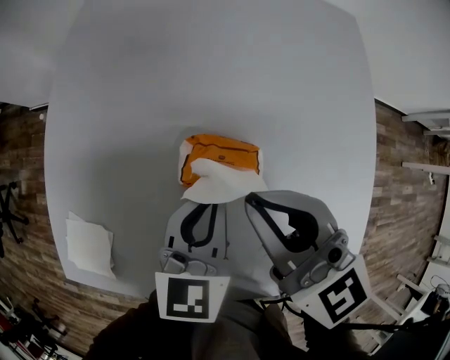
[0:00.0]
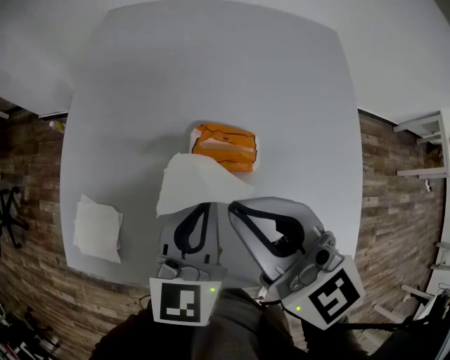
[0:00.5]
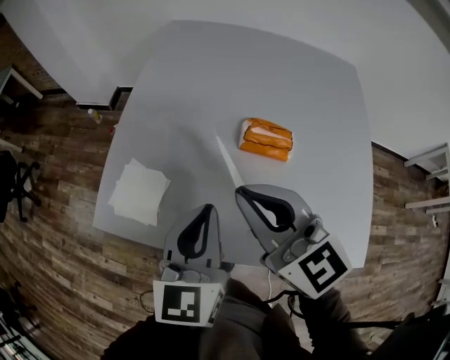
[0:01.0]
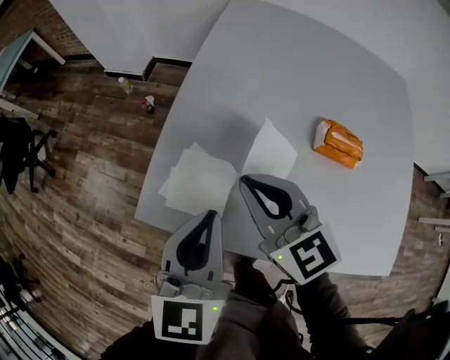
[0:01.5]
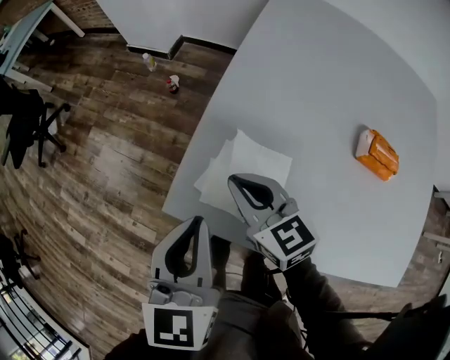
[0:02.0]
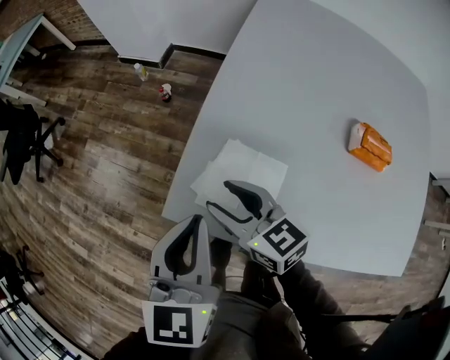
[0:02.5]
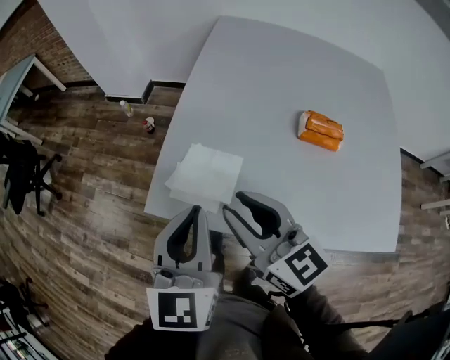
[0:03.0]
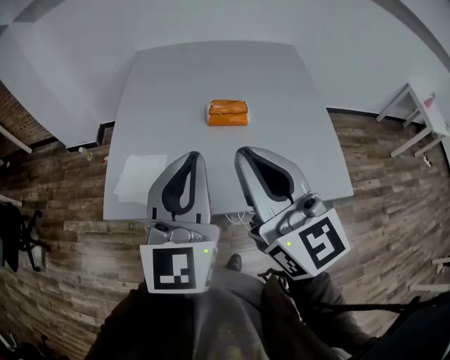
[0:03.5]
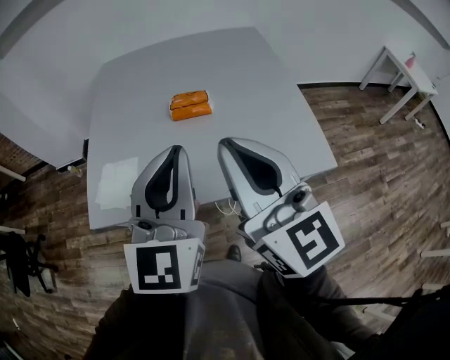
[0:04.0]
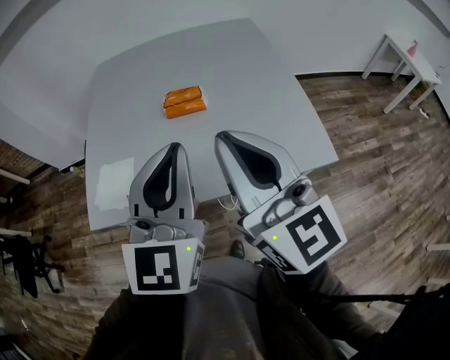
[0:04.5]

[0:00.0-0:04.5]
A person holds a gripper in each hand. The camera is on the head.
0:00.0 to 0:02.0: The two grippers travel together, approximately 50 cm. The left gripper turns by some 30 degrees. The right gripper swivels some 20 degrees.
0:02.0 to 0:04.5: Both grippers are carried approximately 40 cm. The left gripper turns by some 50 degrees. The right gripper angles its fingers upward, by approximately 30 degrees, and opens, then closes again.

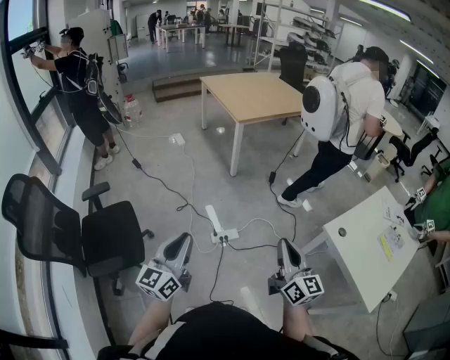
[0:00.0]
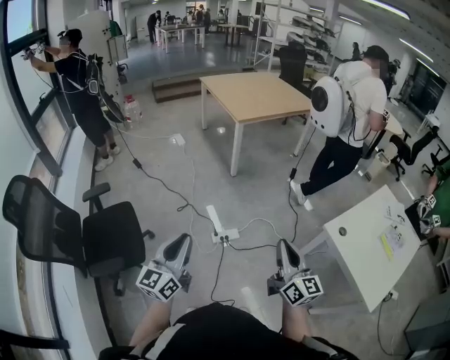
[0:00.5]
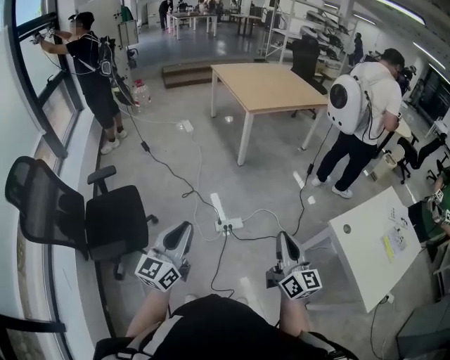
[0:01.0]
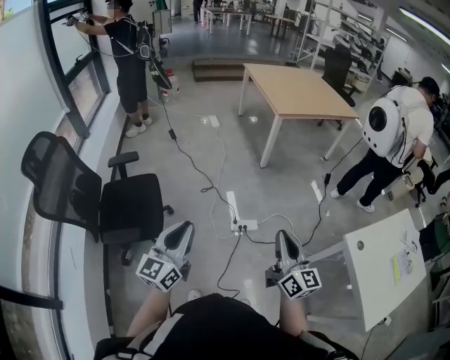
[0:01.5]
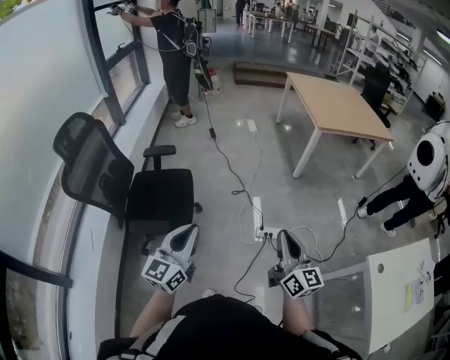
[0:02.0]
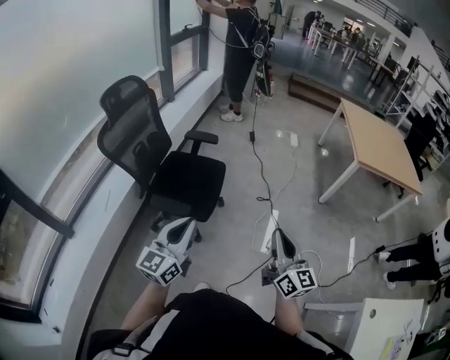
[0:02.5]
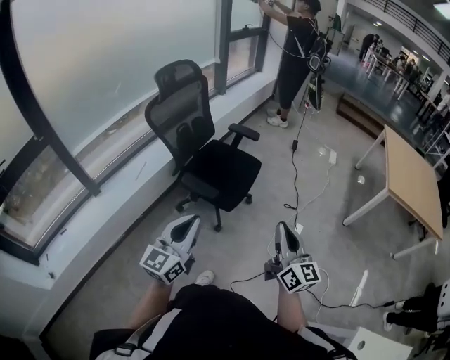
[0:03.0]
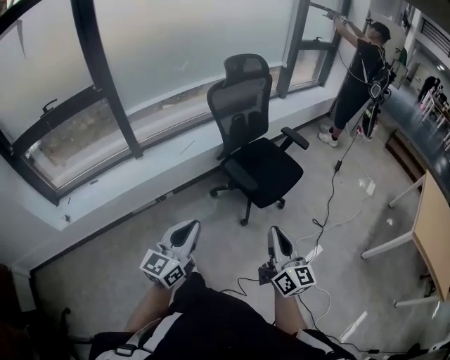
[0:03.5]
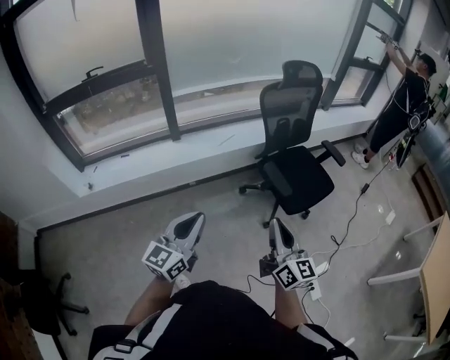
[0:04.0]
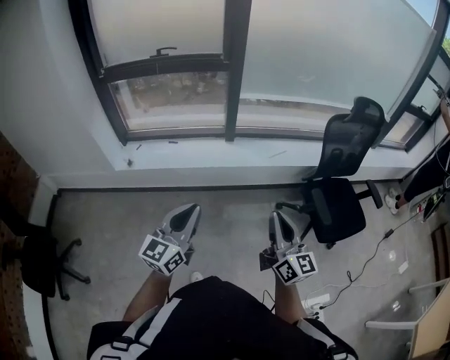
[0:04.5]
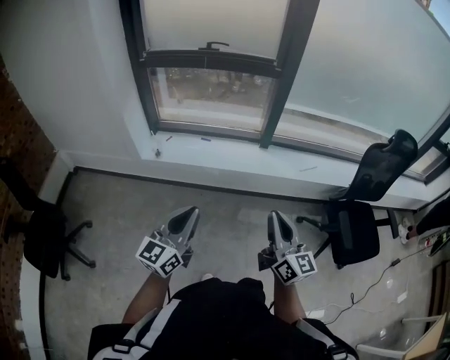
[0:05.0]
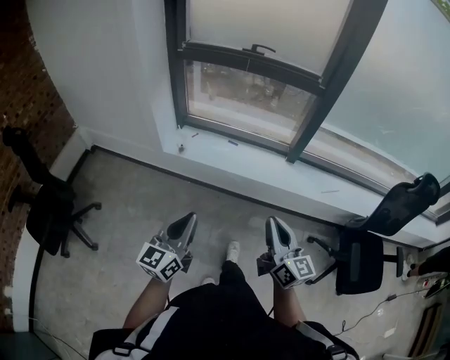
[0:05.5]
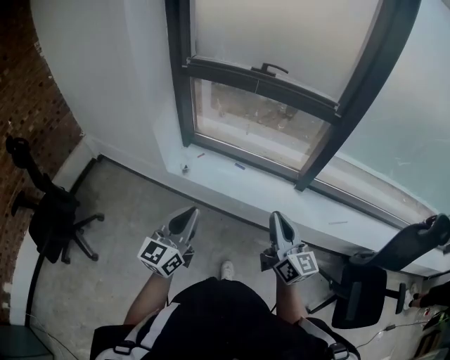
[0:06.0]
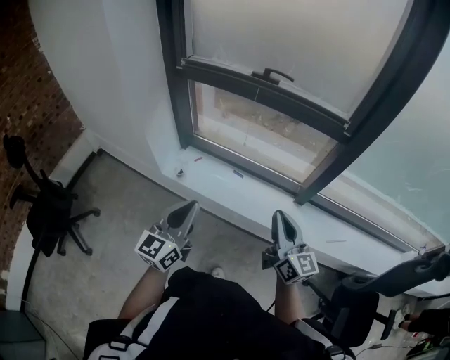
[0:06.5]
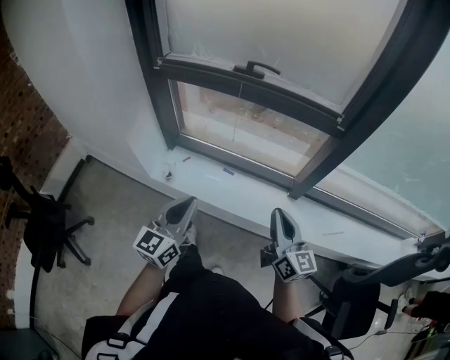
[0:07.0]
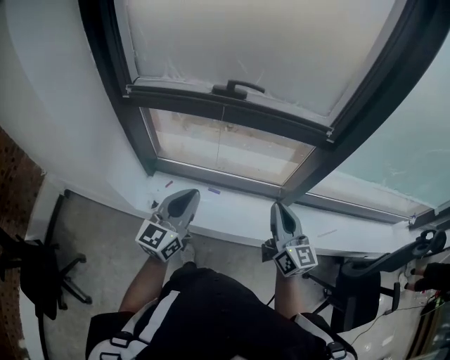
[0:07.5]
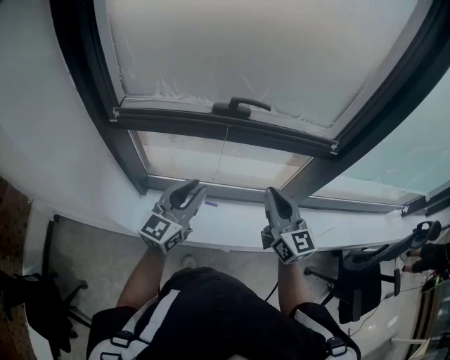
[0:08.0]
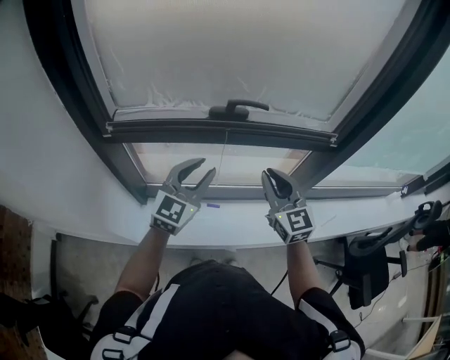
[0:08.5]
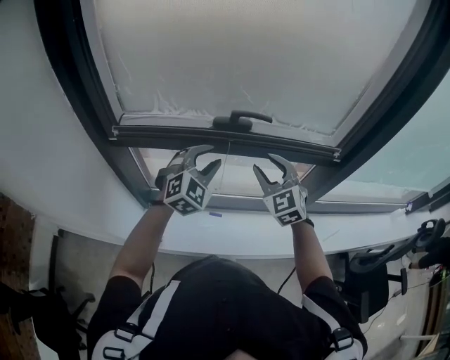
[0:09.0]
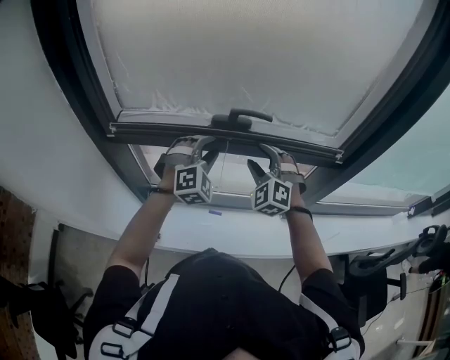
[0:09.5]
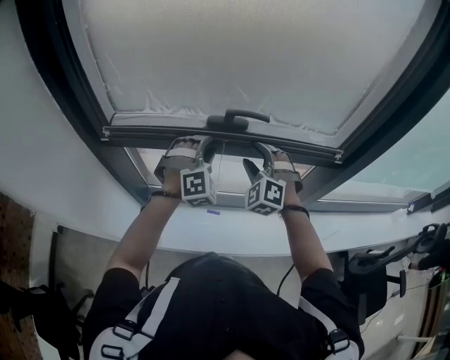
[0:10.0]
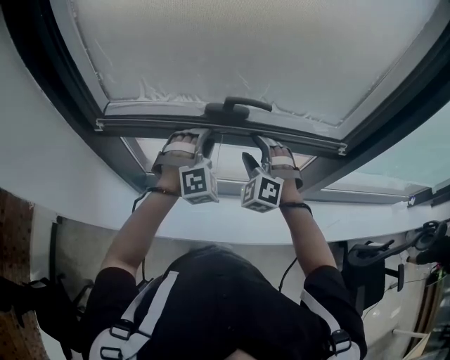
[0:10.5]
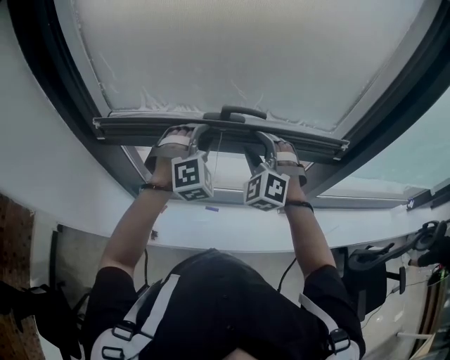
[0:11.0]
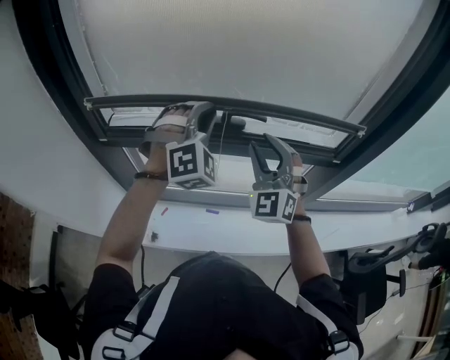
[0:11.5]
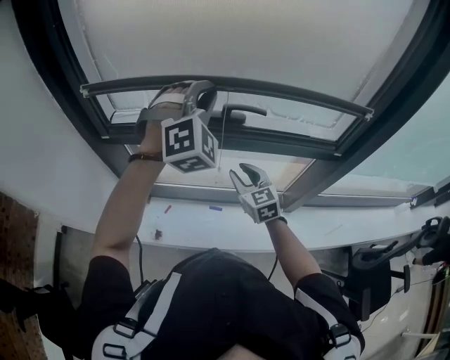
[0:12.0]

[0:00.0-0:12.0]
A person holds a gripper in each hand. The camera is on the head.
0:00.0 to 0:02.0: The right gripper travels to the left by some 20 cm, and swivels about 20 degrees, while the left gripper heads to the left and backward, covering about 15 cm, and rotates about 20 degrees.
0:02.0 to 0:04.0: The right gripper ends up about 35 cm from where it was, and swivels approximately 70 degrees; the left gripper changes place by roughly 40 cm, and swivels about 60 degrees.
0:04.0 to 0:06.0: The pair of grippers is taken roughly 60 cm. The left gripper turns by approximately 40 degrees, while the right gripper changes its angle by about 40 degrees.
0:06.0 to 0:08.0: The grippers both shift forward by some 40 cm. The right gripper changes its angle by approximately 20 degrees, while the left gripper rotates about 20 degrees, and opens its fingers.
0:08.0 to 0:10.0: Both grippers move forward, approximately 20 cm. The left gripper twists roughly 70 degrees clockwise, seen from behind. The right gripper twists roughly 70 degrees counterclockwise, seen from behind, and opens up.
0:10.0 to 0:12.0: The left gripper goes some 20 cm upward, and closes up, while the right gripper moves some 15 cm upward and comes back, rotates around the line of its fingers by approximately 60 degrees, clockwise from behind, and closes up.

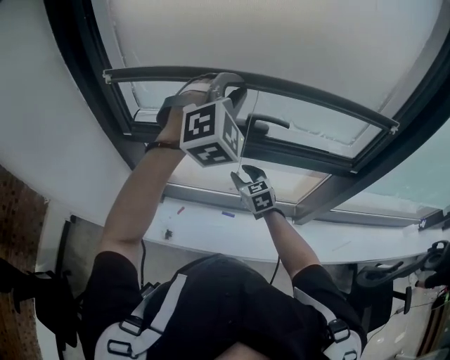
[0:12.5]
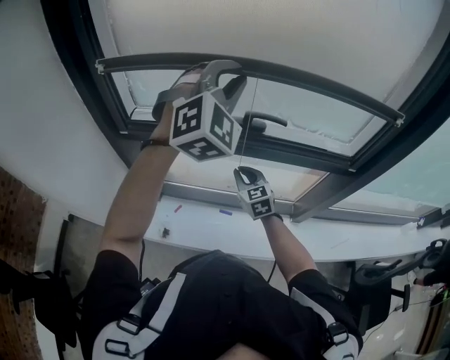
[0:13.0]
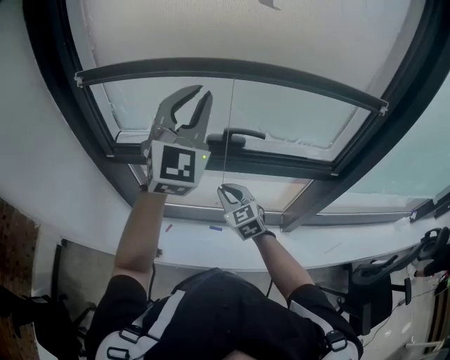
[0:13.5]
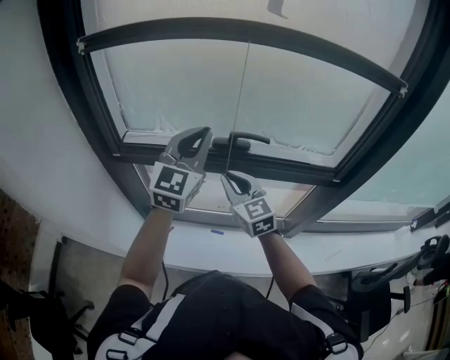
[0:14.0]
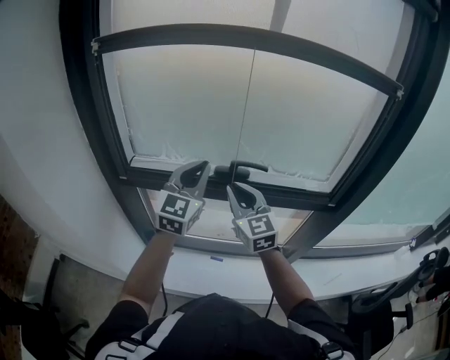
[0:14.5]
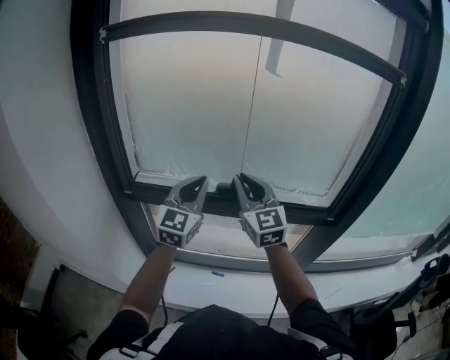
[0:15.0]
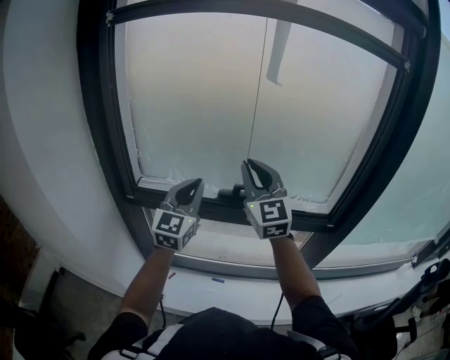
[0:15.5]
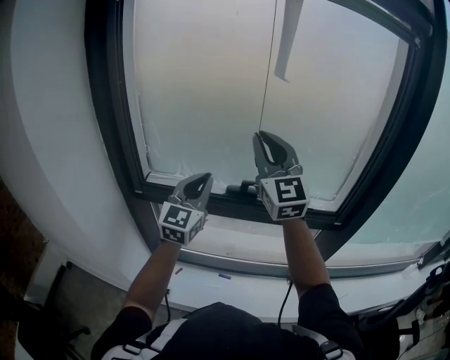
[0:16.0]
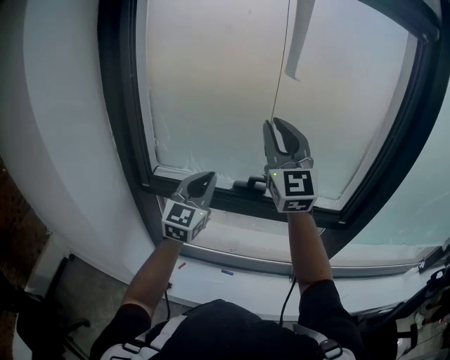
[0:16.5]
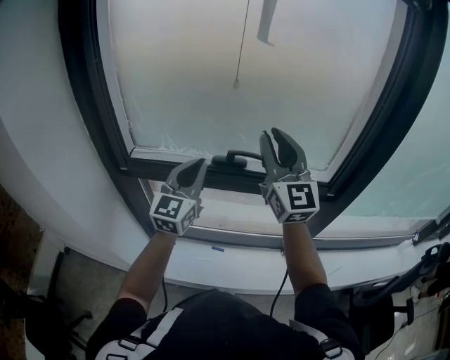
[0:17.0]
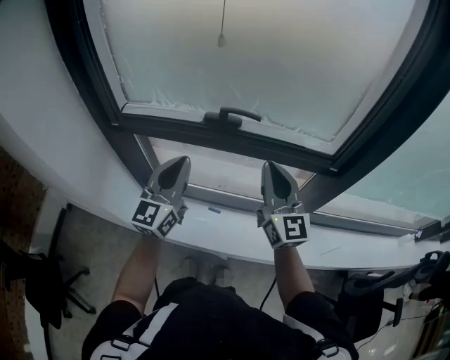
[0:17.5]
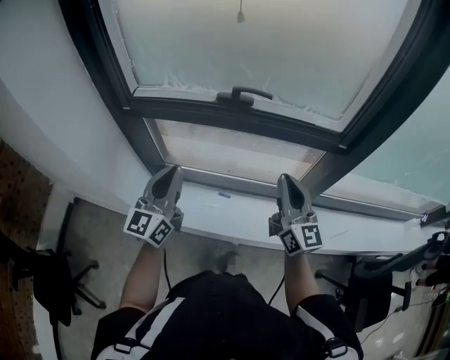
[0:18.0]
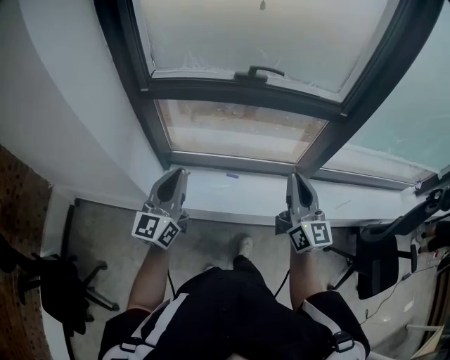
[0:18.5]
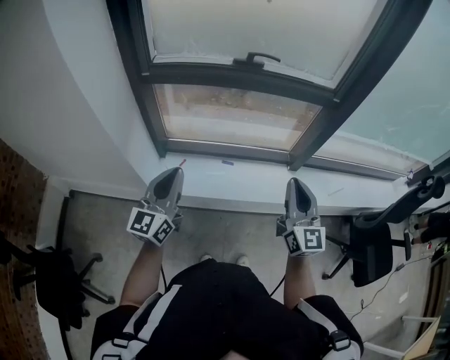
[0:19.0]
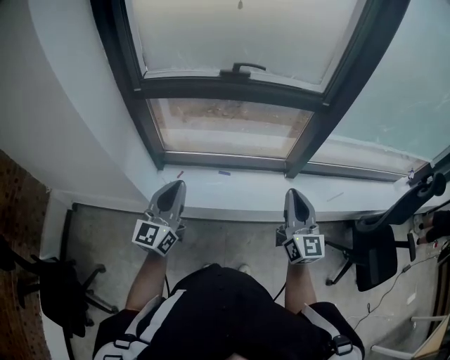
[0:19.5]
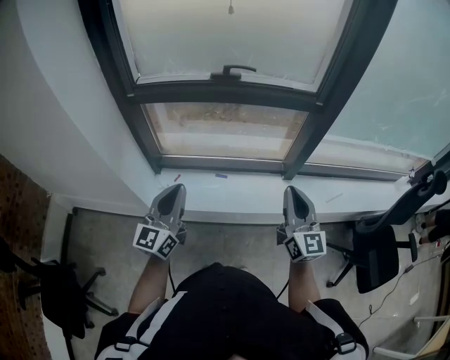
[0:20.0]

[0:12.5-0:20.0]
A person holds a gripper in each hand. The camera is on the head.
0:12.5 to 0:14.5: The right gripper heads upward, covering approximately 25 cm, changes its angle by about 30 degrees, and closes its fingers; the left gripper moves downward and to the left, about 10 cm, and rotates around the line of its fingers by about 50 degrees, counterclockwise from behind.
0:14.5 to 0:16.5: The left gripper ends up some 5 cm from where it was; the right gripper shifts approximately 25 cm upward, and changes its angle by roughly 30 degrees.
0:16.5 to 0:18.0: The right gripper goes approximately 35 cm downward, backward and to the right, and rotates roughly 40 degrees. The left gripper is displaced backward and downward by some 20 cm.
0:18.0 to 0:20.0: The two grippers go some 20 cm backward.

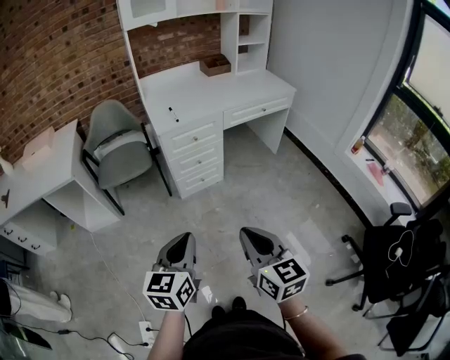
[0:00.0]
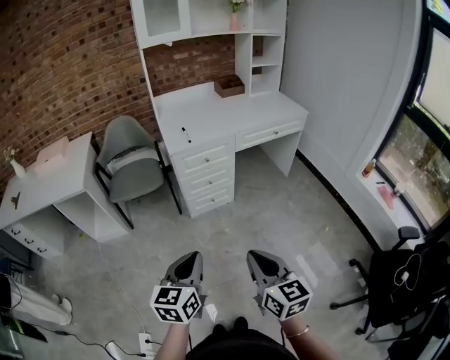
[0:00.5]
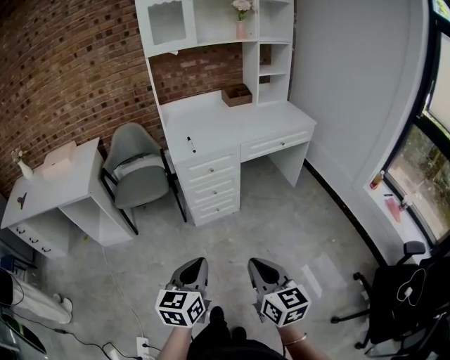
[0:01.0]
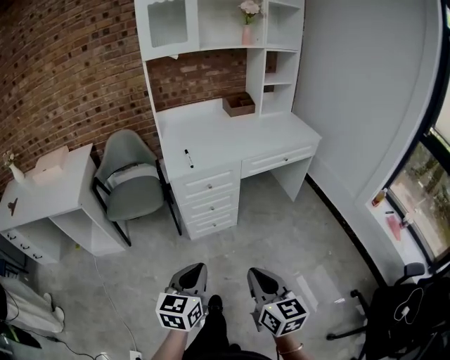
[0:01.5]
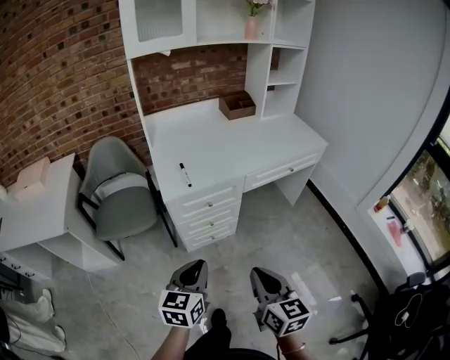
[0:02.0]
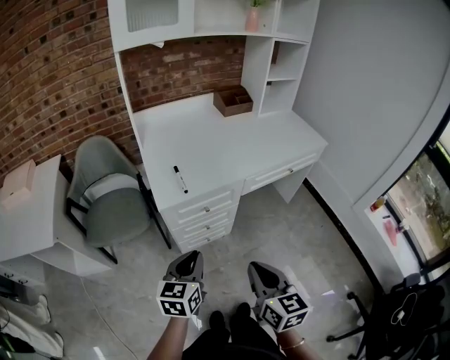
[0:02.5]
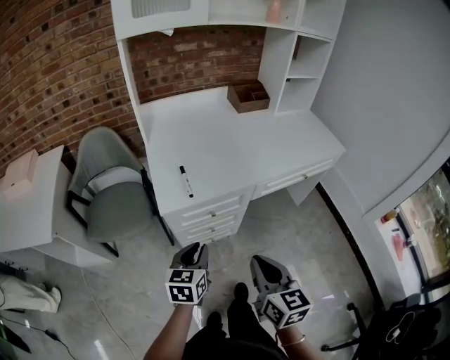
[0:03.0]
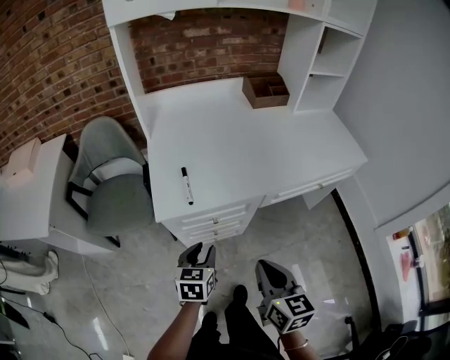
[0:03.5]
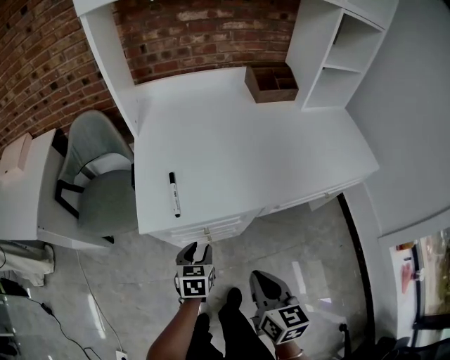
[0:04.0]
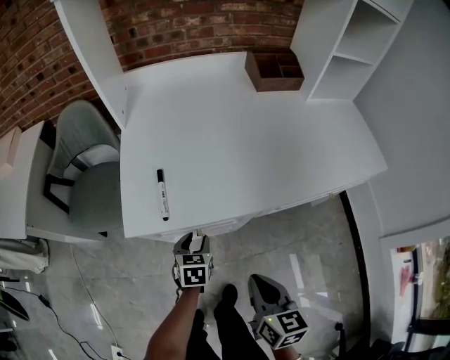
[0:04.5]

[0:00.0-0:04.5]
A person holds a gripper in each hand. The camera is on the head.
0:00.0 to 0:02.0: Both grippers travel together forward, about 30 cm.
0:02.0 to 0:04.5: Both grippers move forward and downward, roughly 40 cm. The left gripper changes its angle by approximately 30 degrees, and opens.
